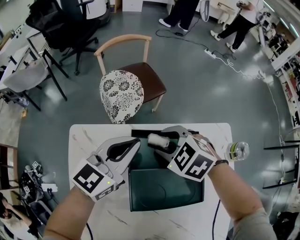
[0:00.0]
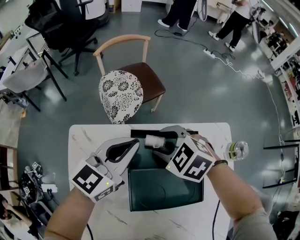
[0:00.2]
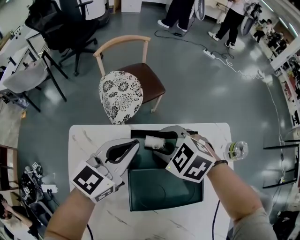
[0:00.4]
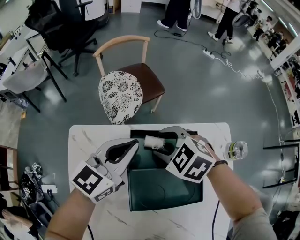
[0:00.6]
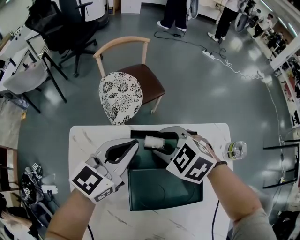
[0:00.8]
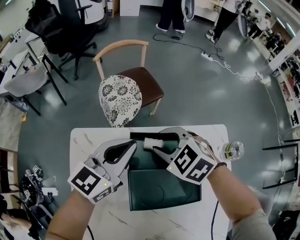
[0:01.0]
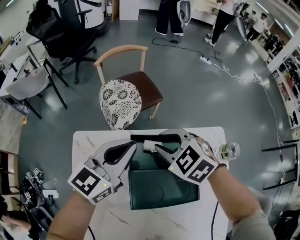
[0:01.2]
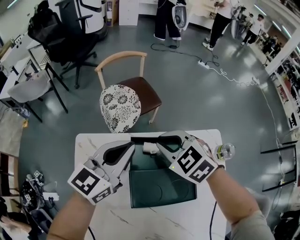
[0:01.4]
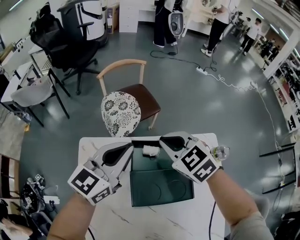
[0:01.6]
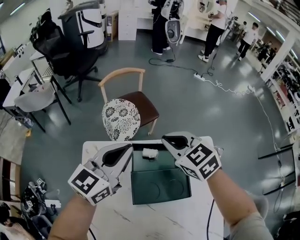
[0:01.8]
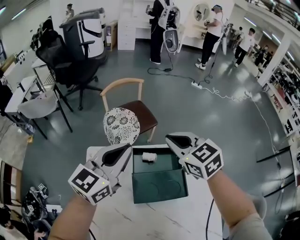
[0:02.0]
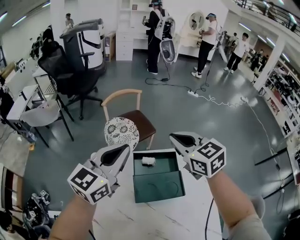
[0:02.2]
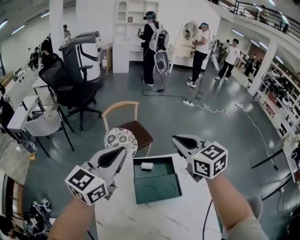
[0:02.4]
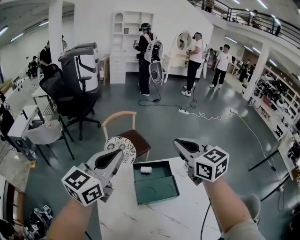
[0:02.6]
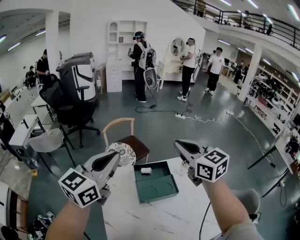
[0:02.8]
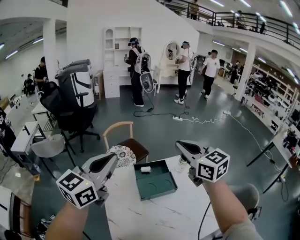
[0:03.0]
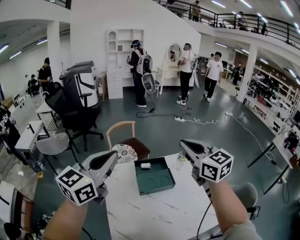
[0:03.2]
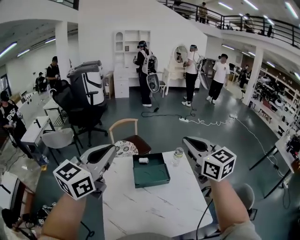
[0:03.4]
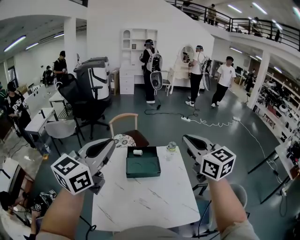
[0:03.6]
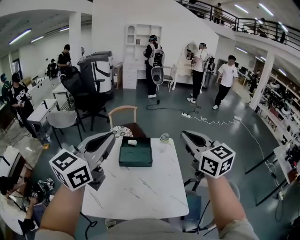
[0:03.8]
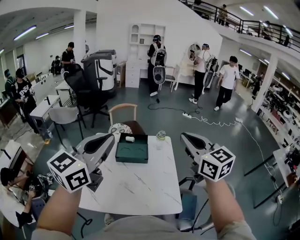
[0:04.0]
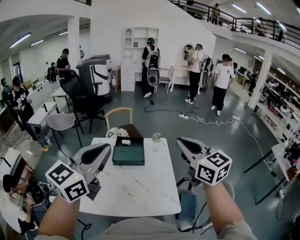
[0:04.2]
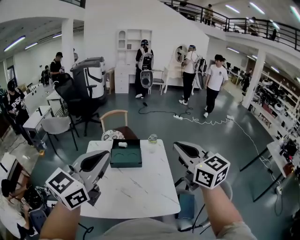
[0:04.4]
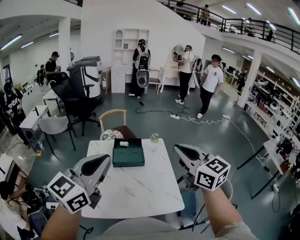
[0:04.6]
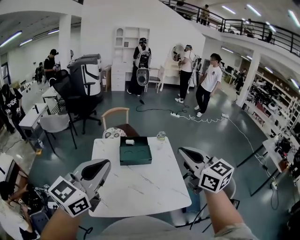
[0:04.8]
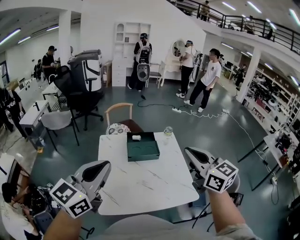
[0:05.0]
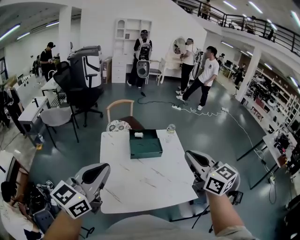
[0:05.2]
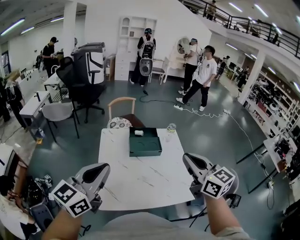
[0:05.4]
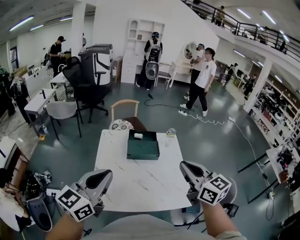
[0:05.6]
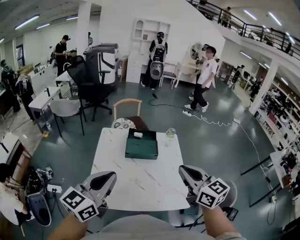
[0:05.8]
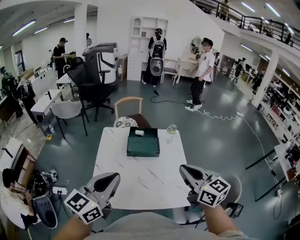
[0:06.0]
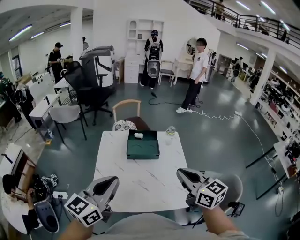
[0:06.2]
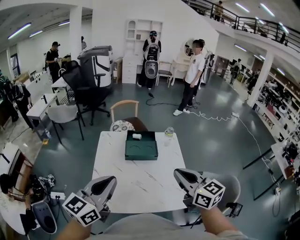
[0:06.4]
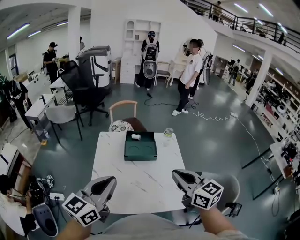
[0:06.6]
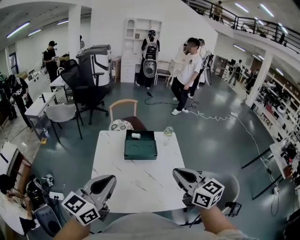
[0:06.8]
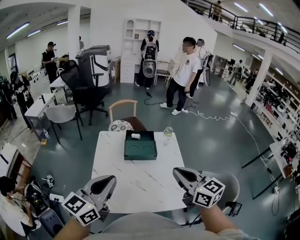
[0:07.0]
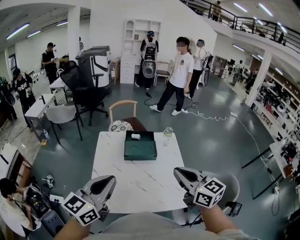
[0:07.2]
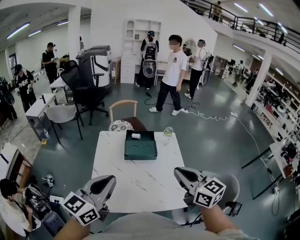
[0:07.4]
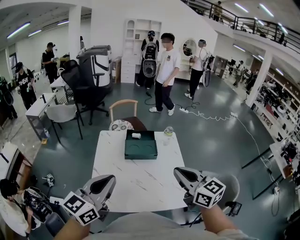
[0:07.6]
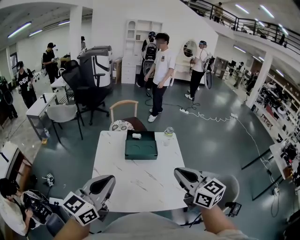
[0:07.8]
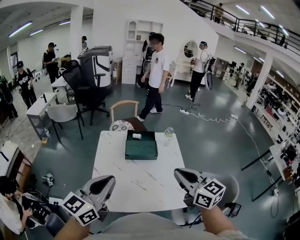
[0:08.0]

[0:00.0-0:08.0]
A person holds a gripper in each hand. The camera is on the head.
0:00.0 to 0:01.6: The grippers both shift upward by about 10 cm. The right gripper rotates roughly 20 degrees, and closes its fingers.
0:01.6 to 0:03.2: The grippers both shift upward and backward by approximately 40 cm. The right gripper points its fingers approximately 40 degrees further upward.
0:03.2 to 0:04.8: Both grippers move backward, some 25 cm.
0:04.8 to 0:06.4: The grippers both shift downward by approximately 10 cm. The left gripper goes to the left and returns, about 10 cm each way.
0:06.4 to 0:08.0: There are only small adjustments of the grippers.

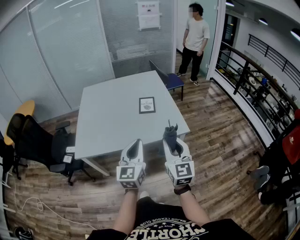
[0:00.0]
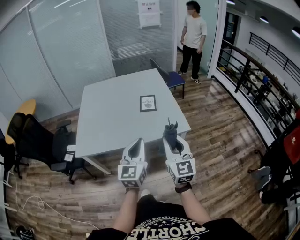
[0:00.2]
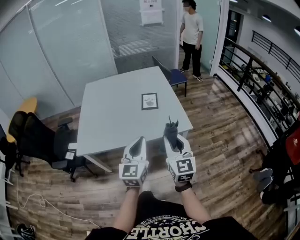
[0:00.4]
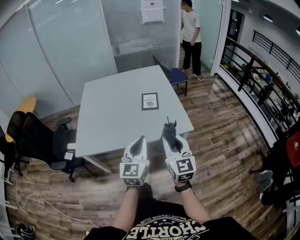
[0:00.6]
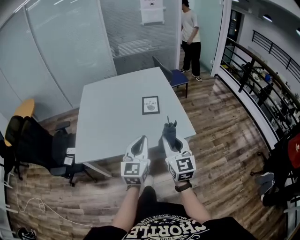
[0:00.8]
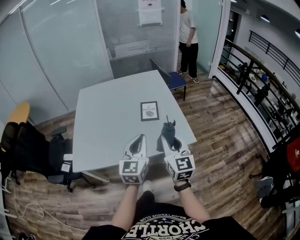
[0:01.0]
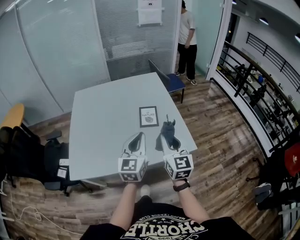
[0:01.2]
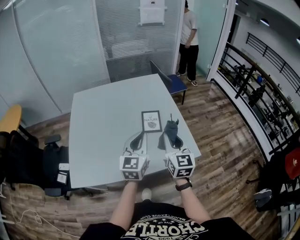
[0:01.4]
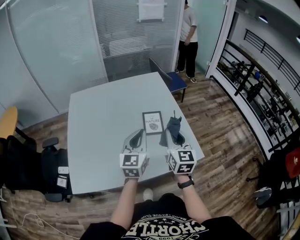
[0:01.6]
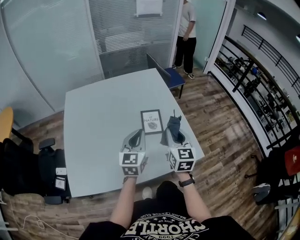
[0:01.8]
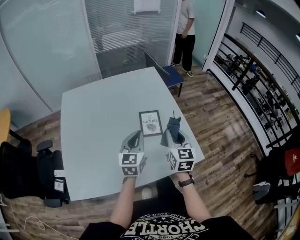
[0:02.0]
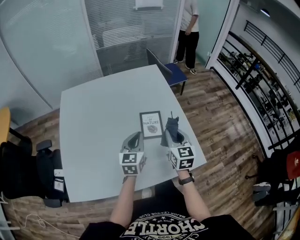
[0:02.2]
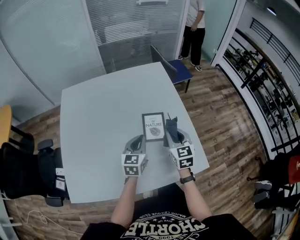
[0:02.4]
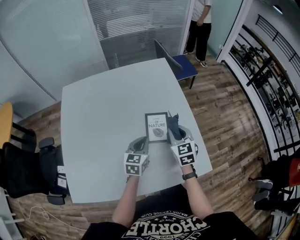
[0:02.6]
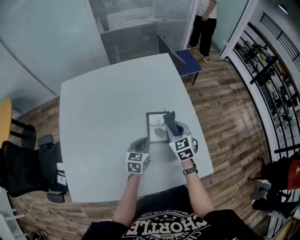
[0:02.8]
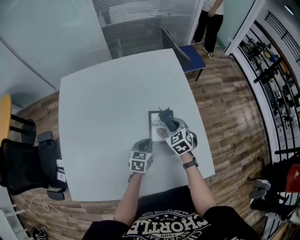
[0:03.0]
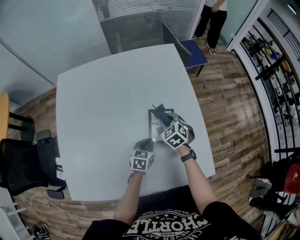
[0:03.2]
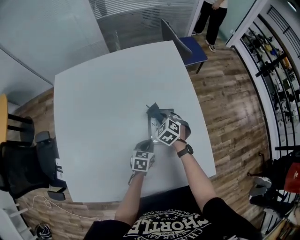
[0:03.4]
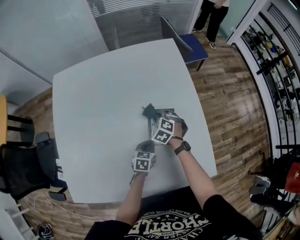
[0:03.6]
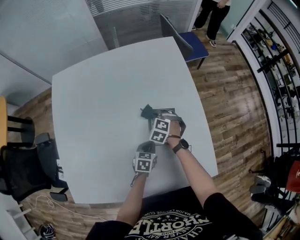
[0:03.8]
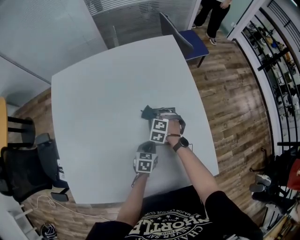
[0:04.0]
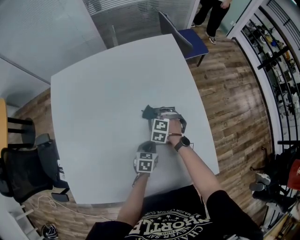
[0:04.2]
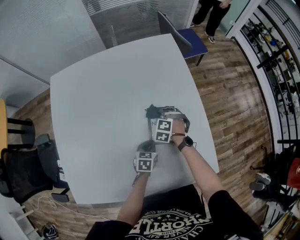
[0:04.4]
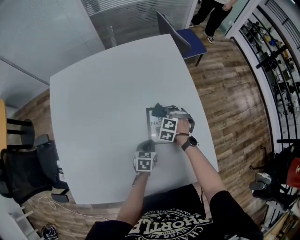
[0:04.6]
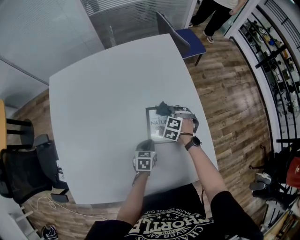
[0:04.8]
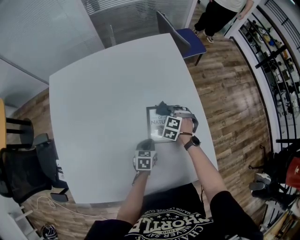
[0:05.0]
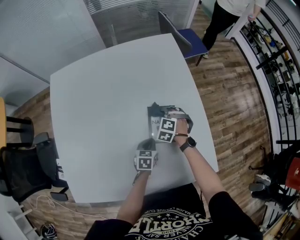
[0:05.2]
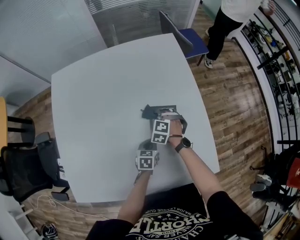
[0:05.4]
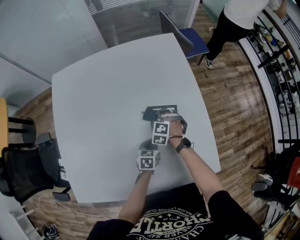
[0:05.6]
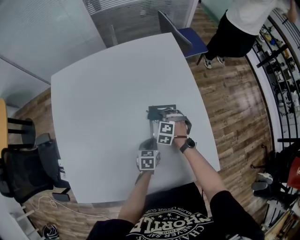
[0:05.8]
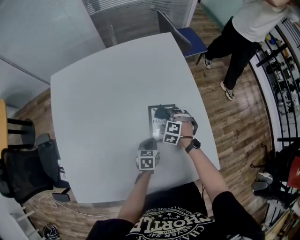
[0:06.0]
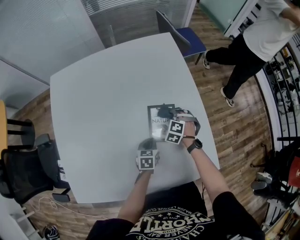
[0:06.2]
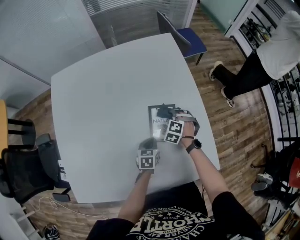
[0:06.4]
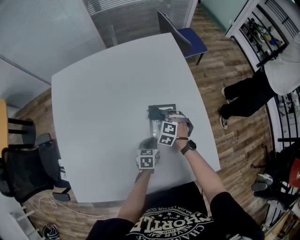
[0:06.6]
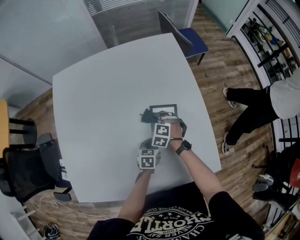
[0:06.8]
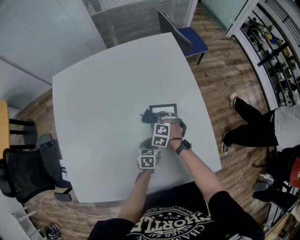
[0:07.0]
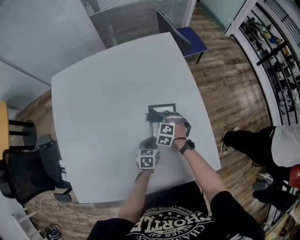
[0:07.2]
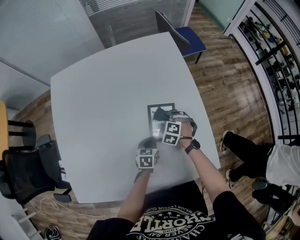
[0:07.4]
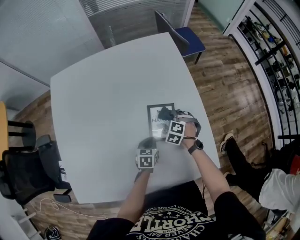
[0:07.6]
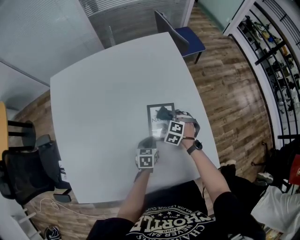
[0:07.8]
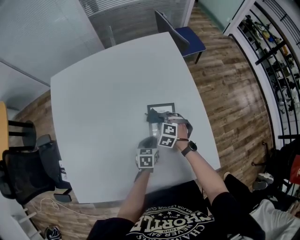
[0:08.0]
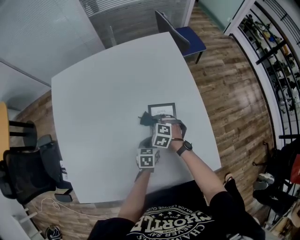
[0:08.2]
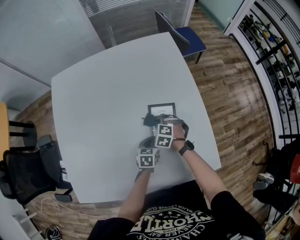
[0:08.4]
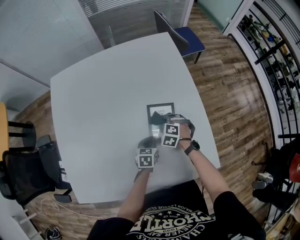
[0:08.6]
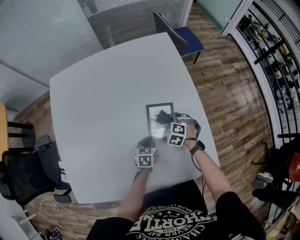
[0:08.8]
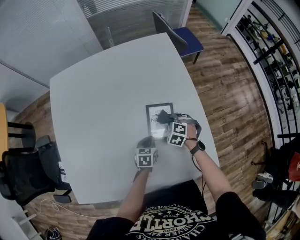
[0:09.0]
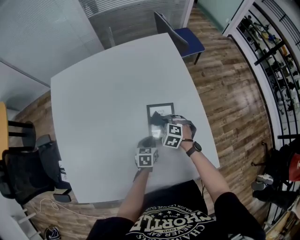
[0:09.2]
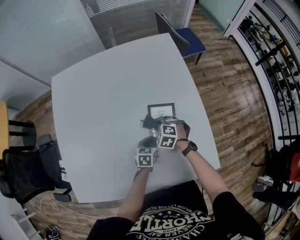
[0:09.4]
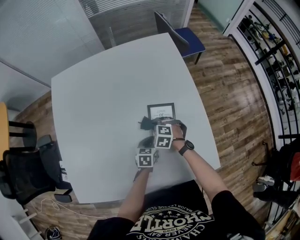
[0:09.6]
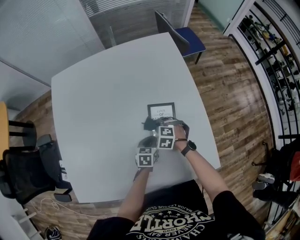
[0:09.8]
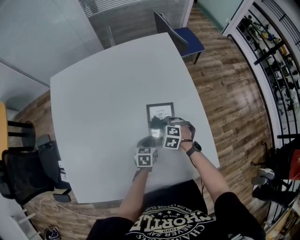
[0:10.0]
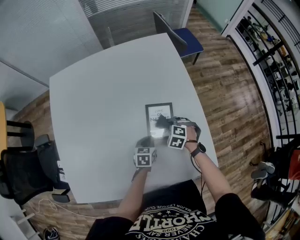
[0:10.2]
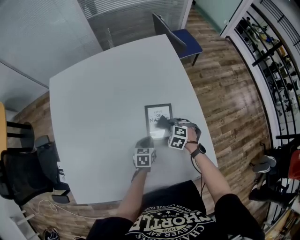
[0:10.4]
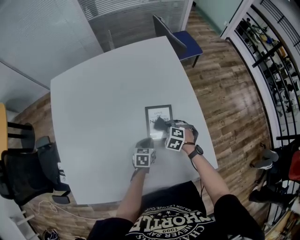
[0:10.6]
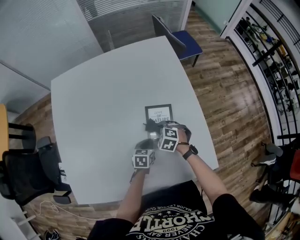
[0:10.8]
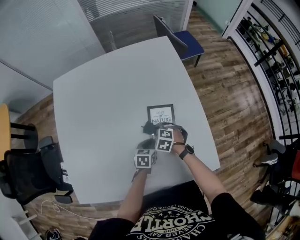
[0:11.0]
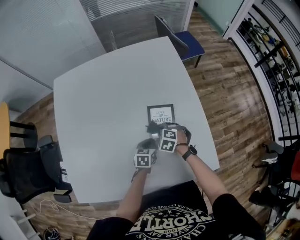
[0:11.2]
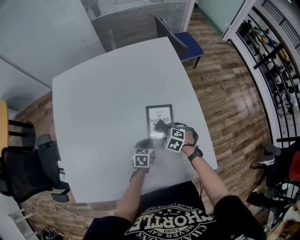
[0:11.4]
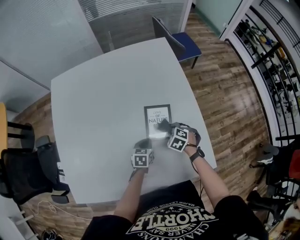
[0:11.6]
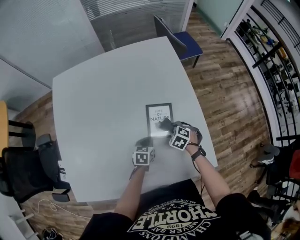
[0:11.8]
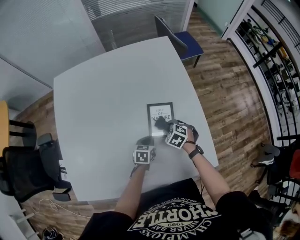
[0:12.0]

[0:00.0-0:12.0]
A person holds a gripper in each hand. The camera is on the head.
0:00.0 to 0:01.6: The two grippers go about 35 cm forward.
0:01.6 to 0:03.0: The left gripper is displaced downward and forward by some 35 cm, and tilts its fingers approximately 30 degrees downward; the right gripper goes about 35 cm forward and downward, and points its fingers some 40 degrees further downward.
0:03.0 to 0:04.4: The right gripper moves downward, about 15 cm, and changes its angle by about 50 degrees. The left gripper heads downward, covering about 10 cm.
0:04.4 to 0:06.0: The right gripper goes left and right, some 10 cm each way, reversing 2 times.
0:06.0 to 0:07.6: The right gripper goes to the left and returns, roughly 10 cm each way.
0:07.6 to 0:09.0: The right gripper travels to the left and back again, some 10 cm each way.
0:09.0 to 0:10.4: The right gripper travels to the left and back again, some 10 cm each way.
0:10.4 to 0:12.0: The right gripper goes left and right, approximately 10 cm each way, reversing 2 times.

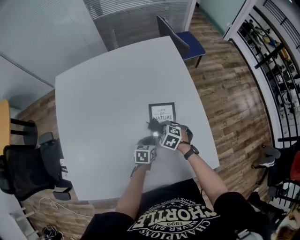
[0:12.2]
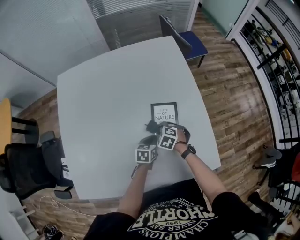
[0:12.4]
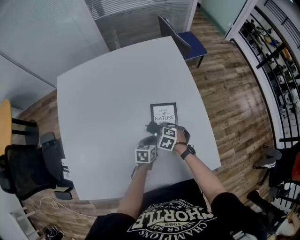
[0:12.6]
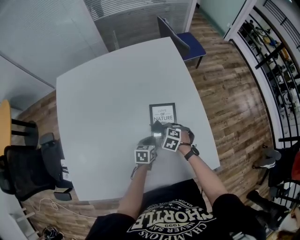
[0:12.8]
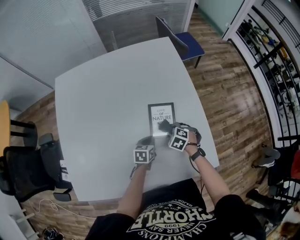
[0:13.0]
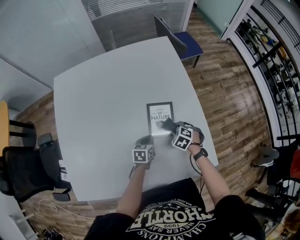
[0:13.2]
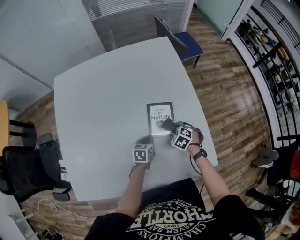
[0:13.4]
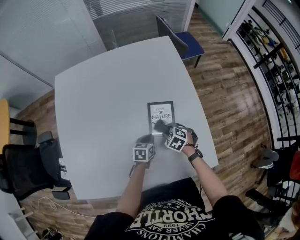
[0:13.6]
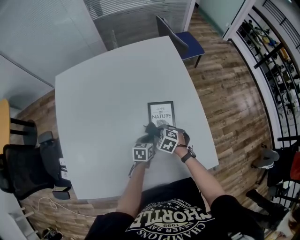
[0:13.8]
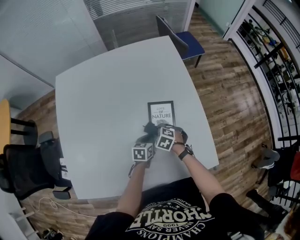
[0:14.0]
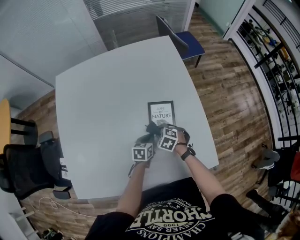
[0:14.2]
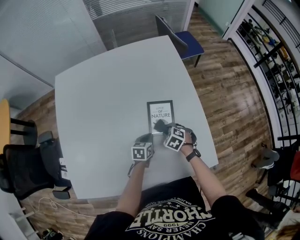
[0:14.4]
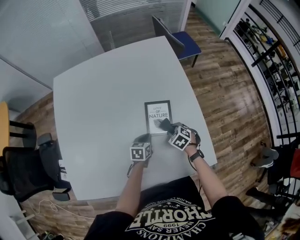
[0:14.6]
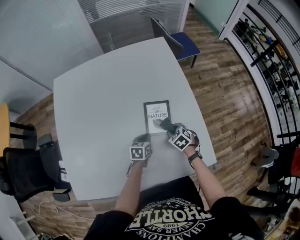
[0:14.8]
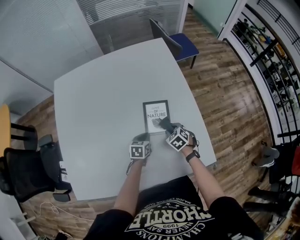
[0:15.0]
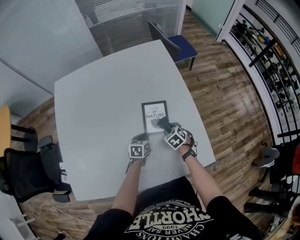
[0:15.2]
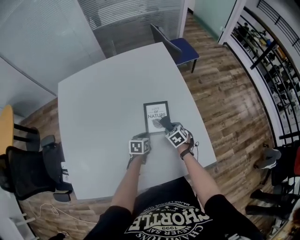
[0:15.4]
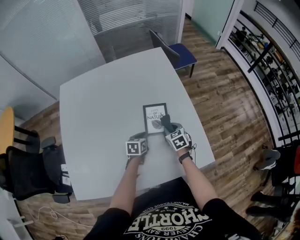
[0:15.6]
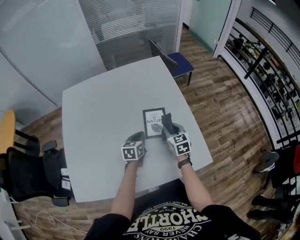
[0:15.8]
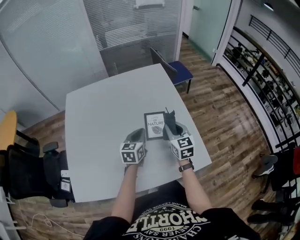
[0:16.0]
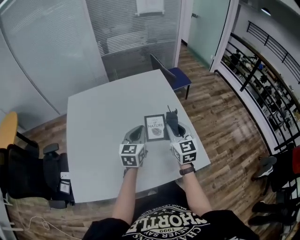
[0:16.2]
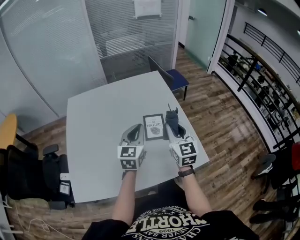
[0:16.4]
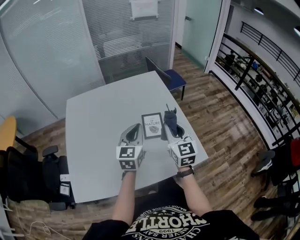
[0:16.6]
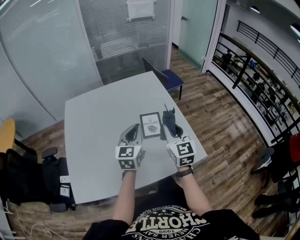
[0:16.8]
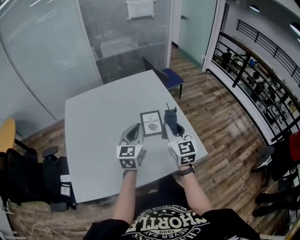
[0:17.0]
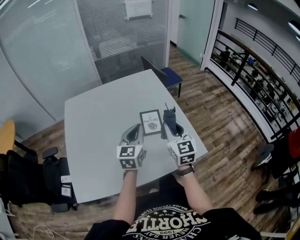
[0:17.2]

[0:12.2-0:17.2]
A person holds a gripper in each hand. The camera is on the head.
0:12.2 to 0:13.8: The right gripper goes to the right and returns, approximately 10 cm each way.
0:13.8 to 0:15.6: The right gripper goes about 10 cm to the right, and turns by roughly 40 degrees.
0:15.6 to 0:17.2: The two grippers go about 35 cm upward and backward. The left gripper tips its fingers upward by approximately 30 degrees. The right gripper tilts its fingers roughly 40 degrees upward.
